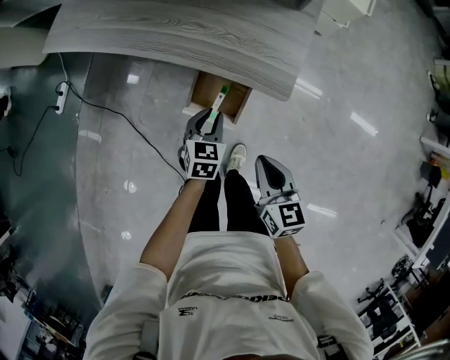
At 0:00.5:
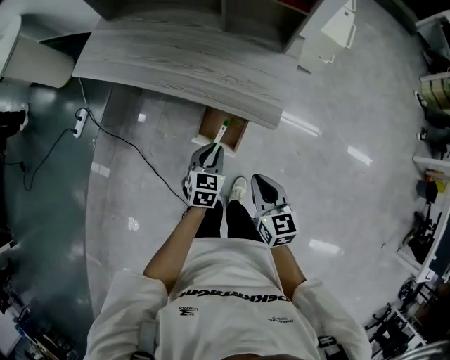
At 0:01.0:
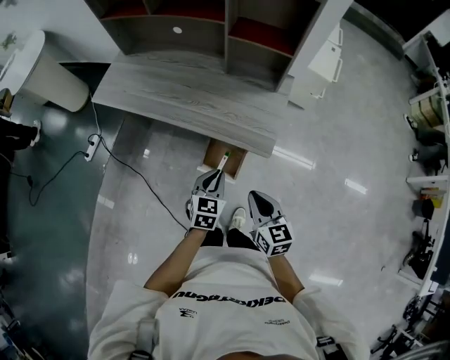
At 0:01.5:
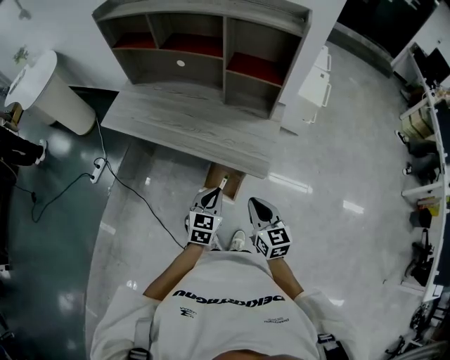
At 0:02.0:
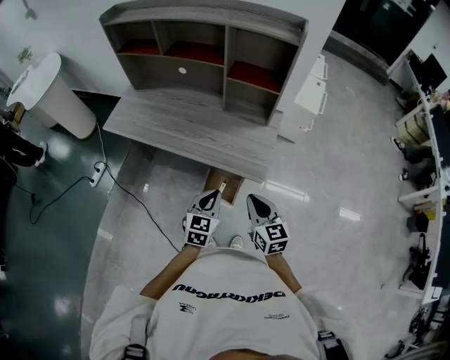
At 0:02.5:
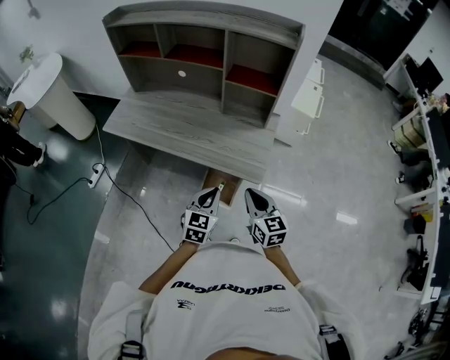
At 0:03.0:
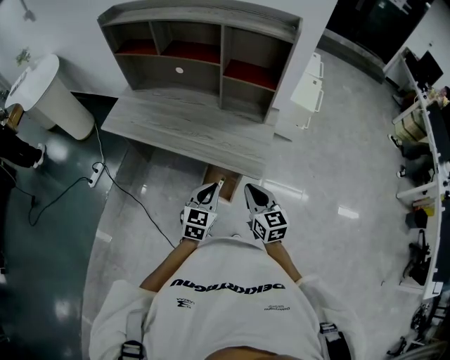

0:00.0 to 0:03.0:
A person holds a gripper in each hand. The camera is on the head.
0:00.0 to 0:01.5: Both grippers travel together upward, some 25 cm.
0:01.5 to 0:03.0: The grippers move only a little.

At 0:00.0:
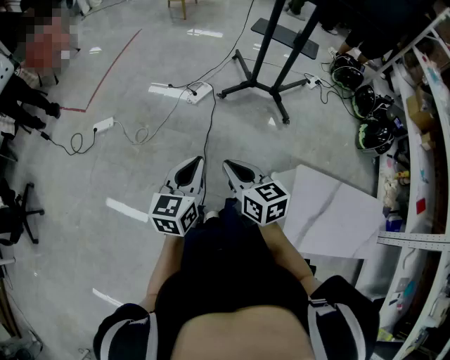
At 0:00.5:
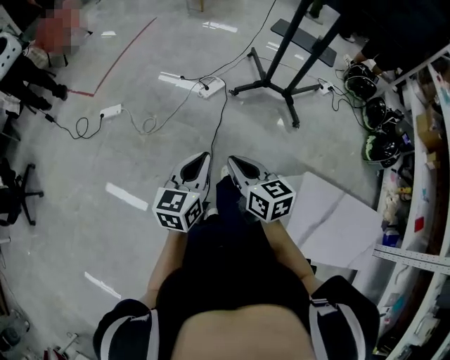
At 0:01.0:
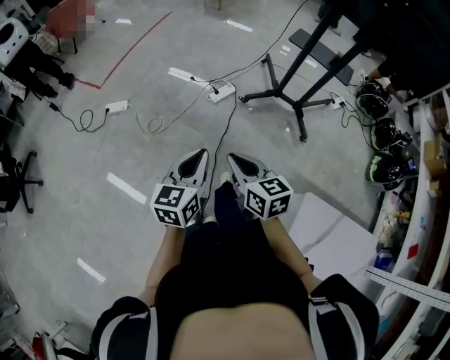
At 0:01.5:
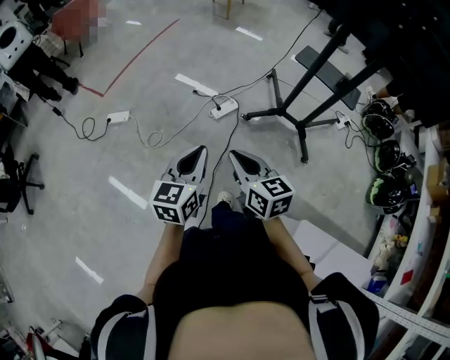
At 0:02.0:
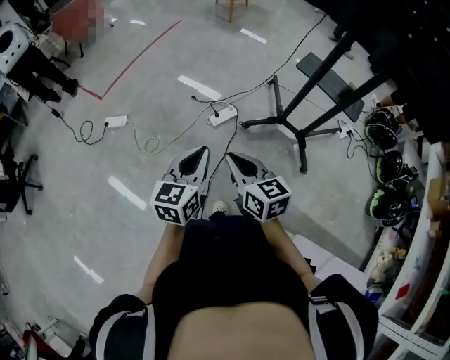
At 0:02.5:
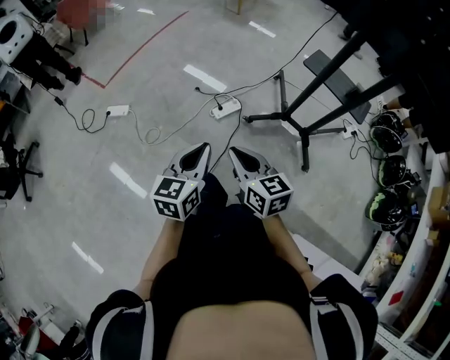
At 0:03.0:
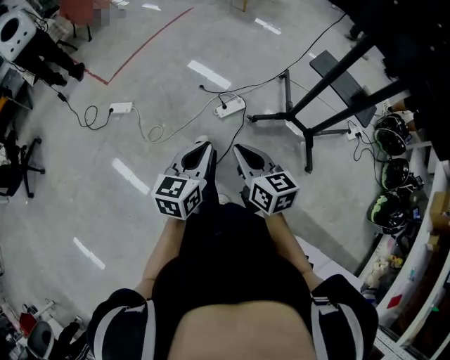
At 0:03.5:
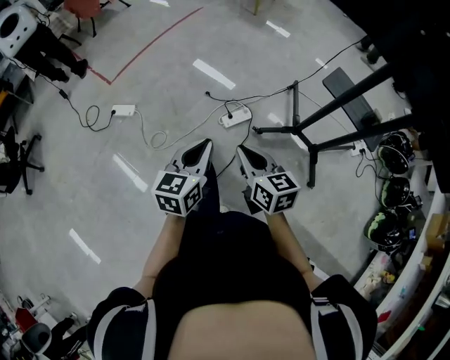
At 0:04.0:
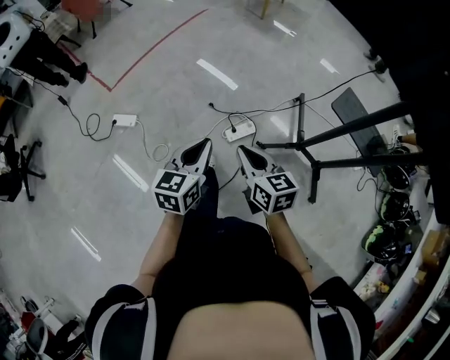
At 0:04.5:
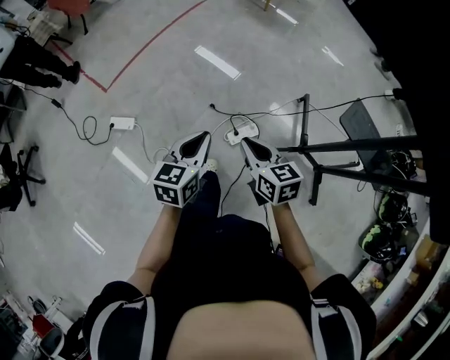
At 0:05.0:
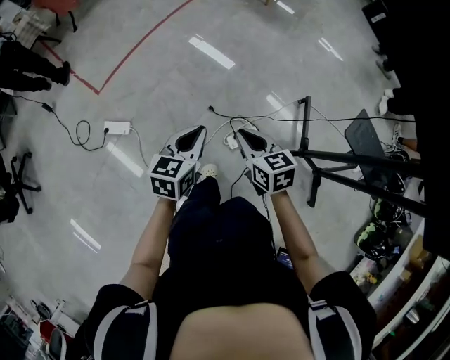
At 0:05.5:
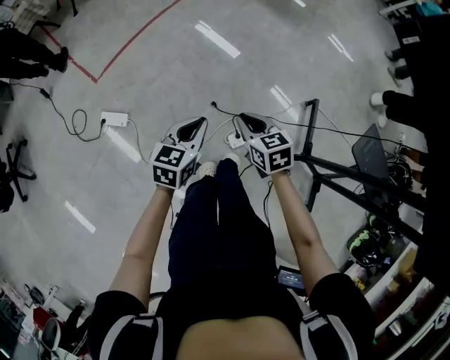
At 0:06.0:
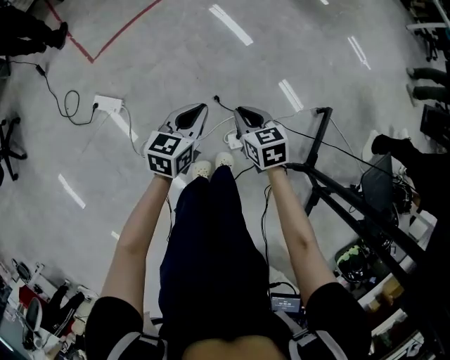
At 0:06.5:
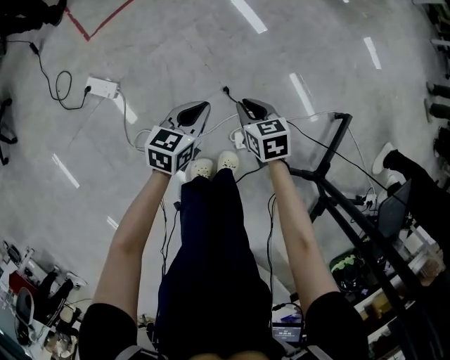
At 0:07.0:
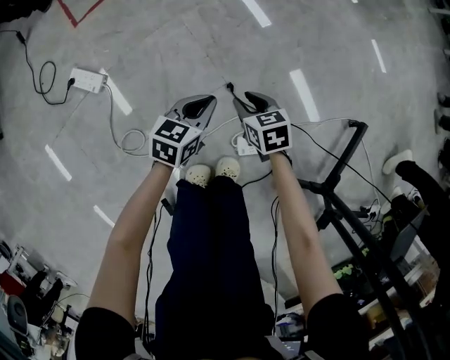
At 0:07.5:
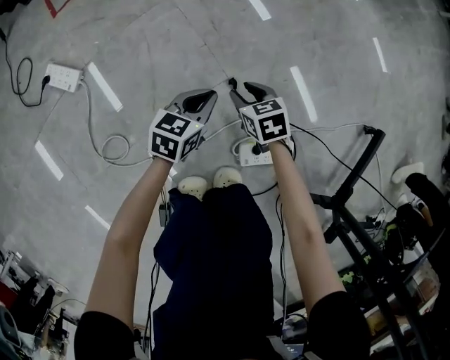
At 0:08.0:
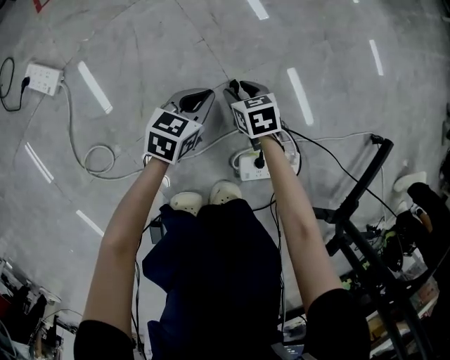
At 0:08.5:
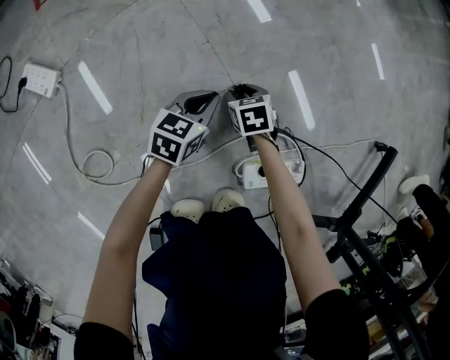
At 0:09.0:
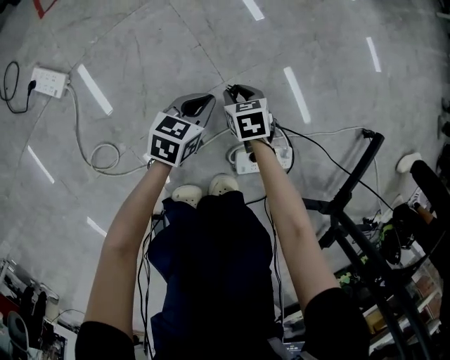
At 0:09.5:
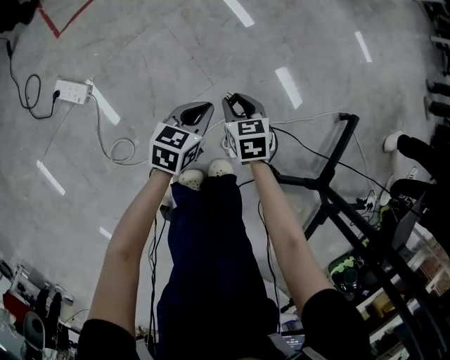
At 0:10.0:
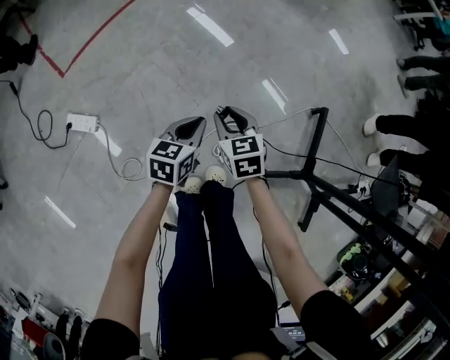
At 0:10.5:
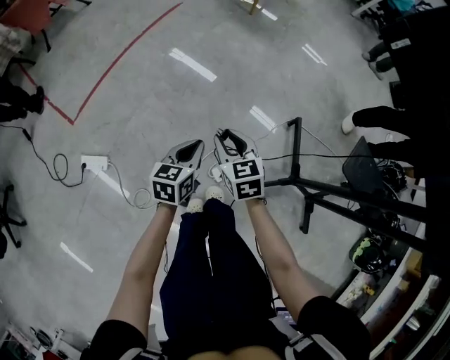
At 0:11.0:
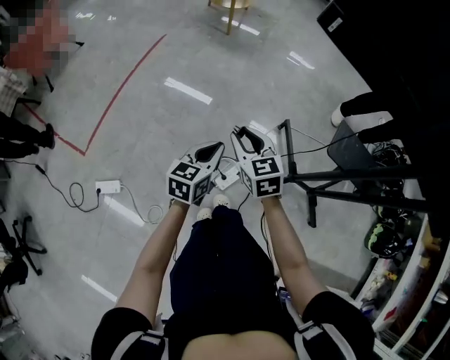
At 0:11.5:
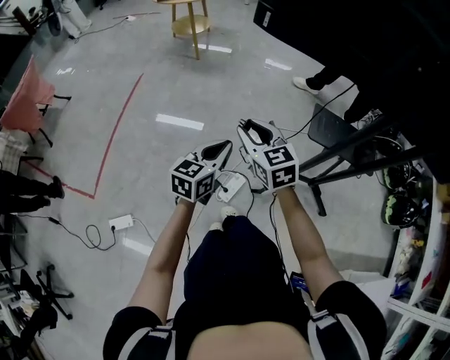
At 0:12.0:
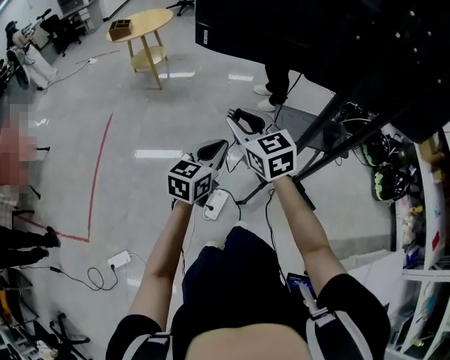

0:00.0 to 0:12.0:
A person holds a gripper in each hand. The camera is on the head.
0:00.0 to 0:02.0: The two grippers go approximately 30 cm forward.
0:02.0 to 0:04.0: The two grippers go some 25 cm forward.
0:04.0 to 0:06.0: The grippers both shift forward and downward by approximately 40 cm. The right gripper turns by roughly 30 degrees.
0:06.0 to 0:08.0: The grippers both shift downward by approximately 60 cm. The right gripper opens up.
0:08.0 to 0:10.0: Both grippers travel together upward, approximately 40 cm. The right gripper changes its angle by roughly 20 degrees.
0:10.0 to 0:12.0: Both grippers move upward, about 50 cm. The right gripper points its fingers approximately 30 degrees further upward. Meanwhile the left gripper rotates approximately 50 degrees.

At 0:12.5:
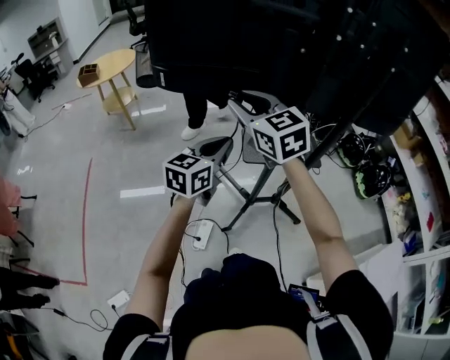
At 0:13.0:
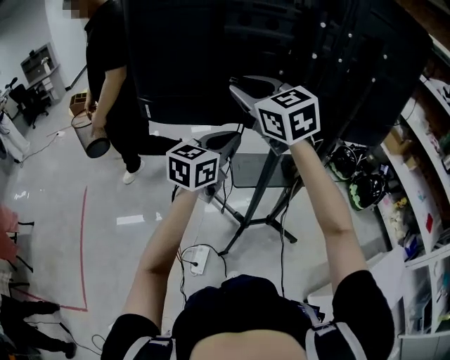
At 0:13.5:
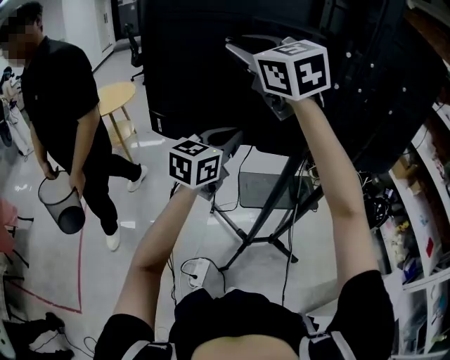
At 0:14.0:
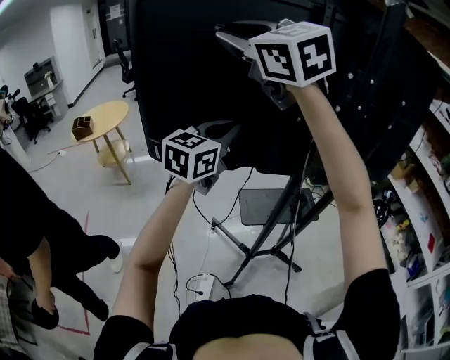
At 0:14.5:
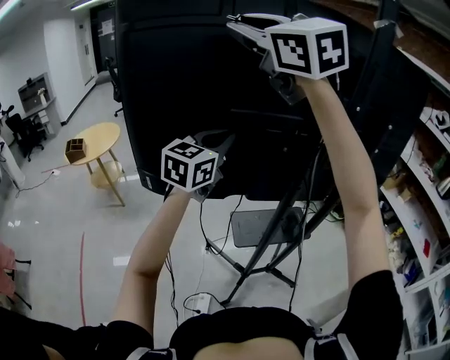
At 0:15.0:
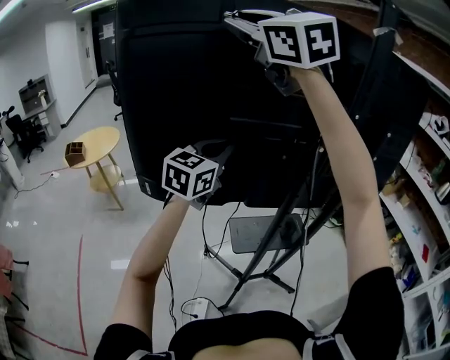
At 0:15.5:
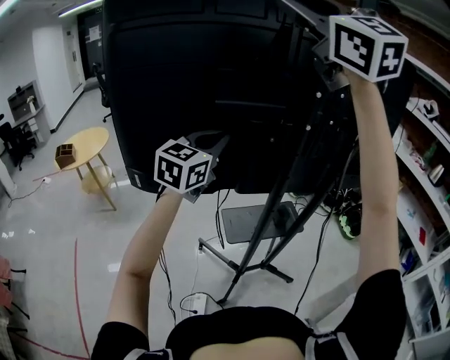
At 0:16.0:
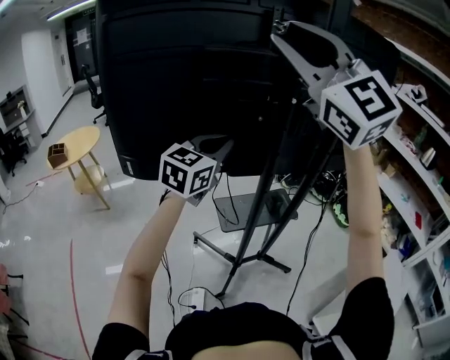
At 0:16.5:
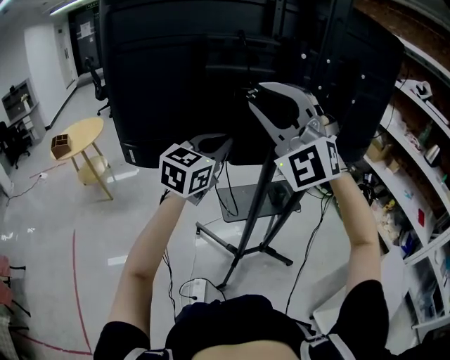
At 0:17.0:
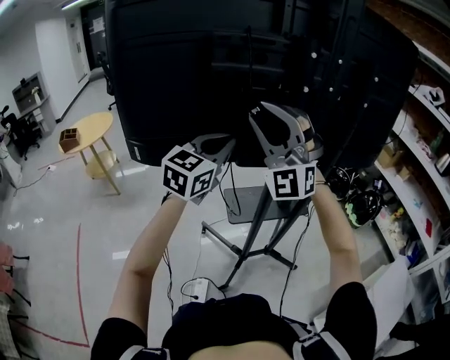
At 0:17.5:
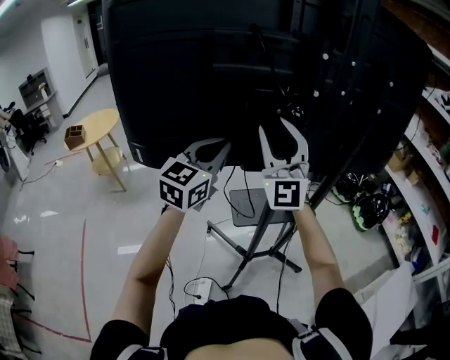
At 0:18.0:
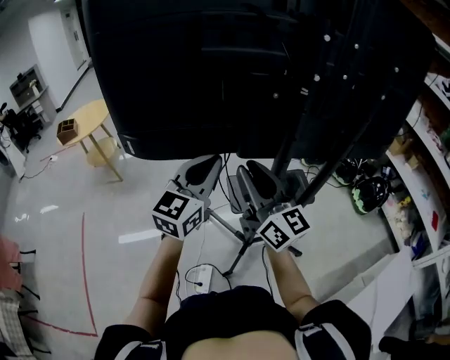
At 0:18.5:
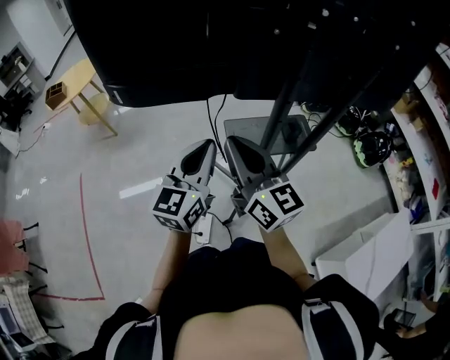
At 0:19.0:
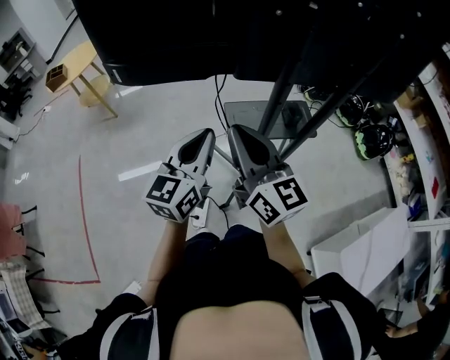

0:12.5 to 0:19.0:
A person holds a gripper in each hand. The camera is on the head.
0:12.5 to 0:14.5: The right gripper goes about 40 cm upward, and rotates some 20 degrees, while the left gripper is displaced upward and forward by roughly 35 cm, and changes its angle by about 20 degrees.
0:14.5 to 0:17.0: The right gripper goes roughly 30 cm downward and to the right, and twists about 50 degrees counterclockwise, seen from behind. The left gripper heads downward, backward and to the right, covering some 15 cm.
0:17.0 to 0:19.0: Both grippers travel together downward and backward, roughly 20 cm. The right gripper twists some 90 degrees clockwise, seen from behind, and closes. Meanwhile the left gripper rotates some 20 degrees.

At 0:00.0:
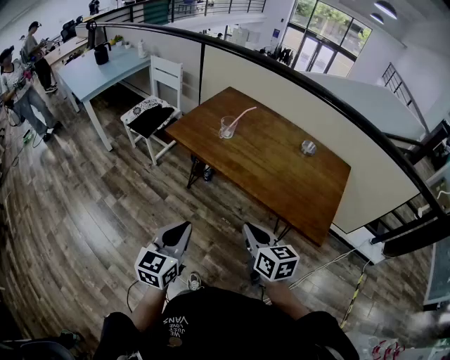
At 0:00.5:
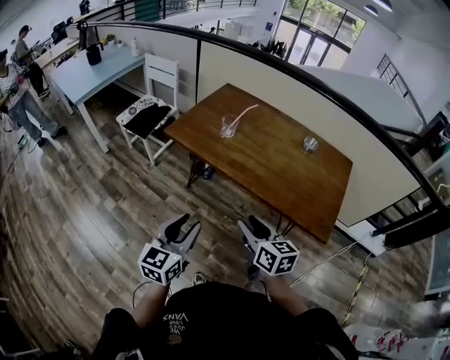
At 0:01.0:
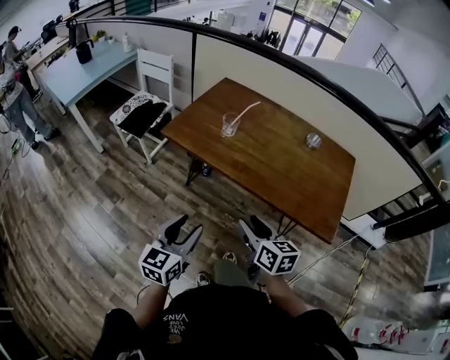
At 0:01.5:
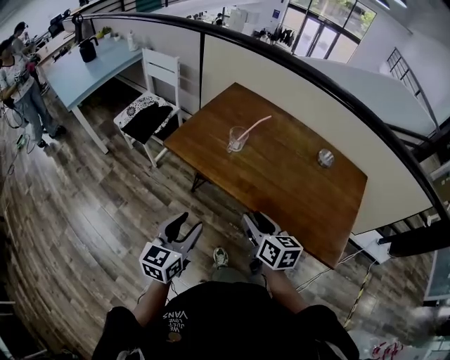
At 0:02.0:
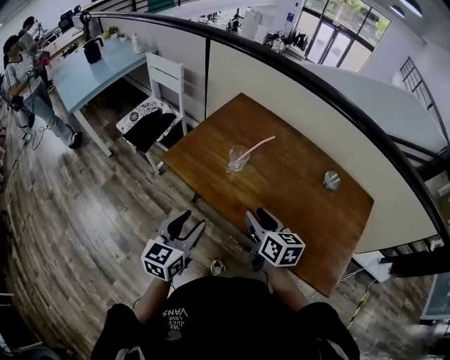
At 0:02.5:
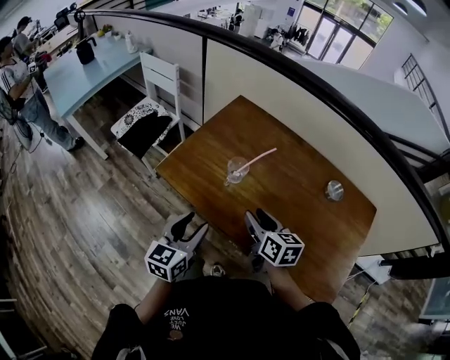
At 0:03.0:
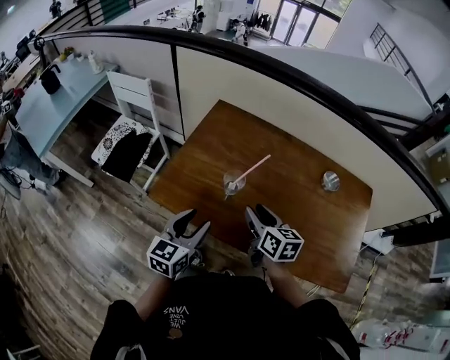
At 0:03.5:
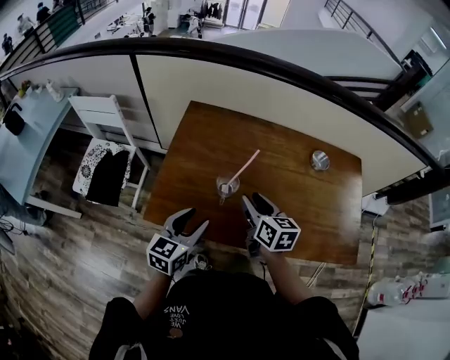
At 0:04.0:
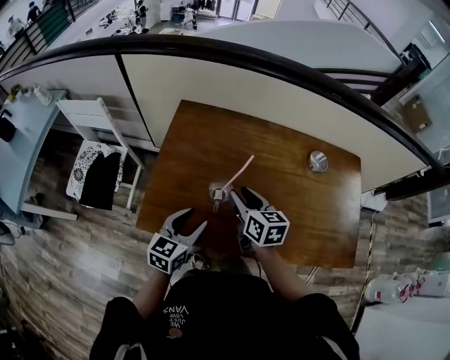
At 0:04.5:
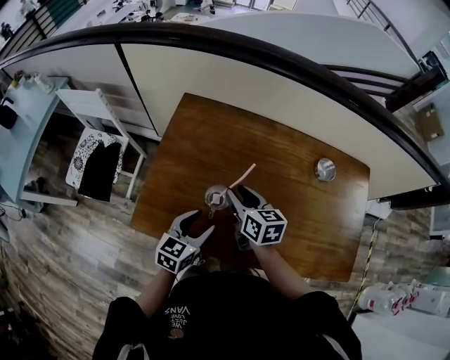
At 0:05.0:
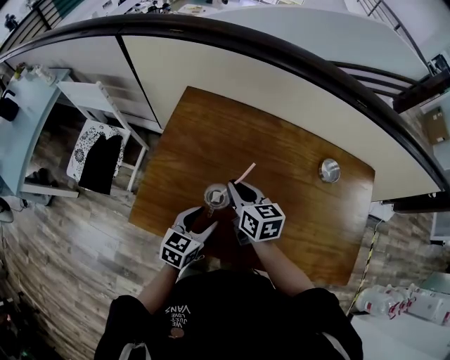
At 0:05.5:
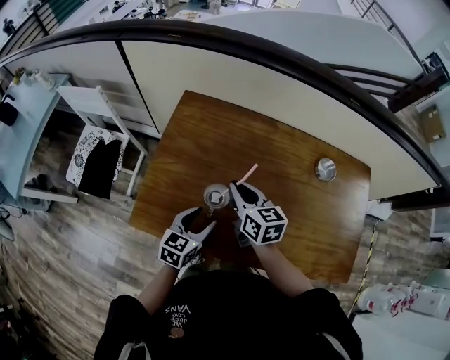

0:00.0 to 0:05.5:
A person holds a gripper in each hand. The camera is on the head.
0:00.0 to 0:02.0: Both grippers move forward, approximately 30 cm. The left gripper opens up. The right gripper opens its fingers.
0:02.0 to 0:03.5: The left gripper moves roughly 20 cm, and rotates some 30 degrees; the right gripper changes place by approximately 15 cm, and rotates roughly 30 degrees.
0:03.5 to 0:05.5: The right gripper goes about 10 cm forward, and closes its fingers. Meanwhile the left gripper is displaced downward, forward and to the right by approximately 15 cm.
